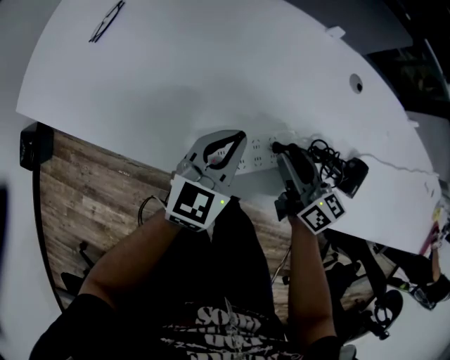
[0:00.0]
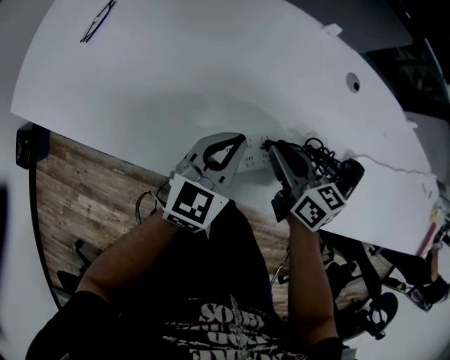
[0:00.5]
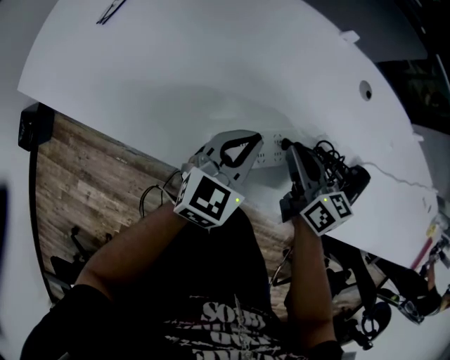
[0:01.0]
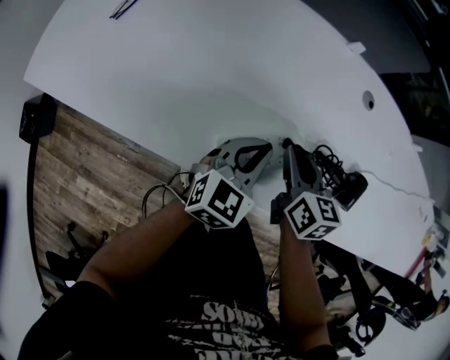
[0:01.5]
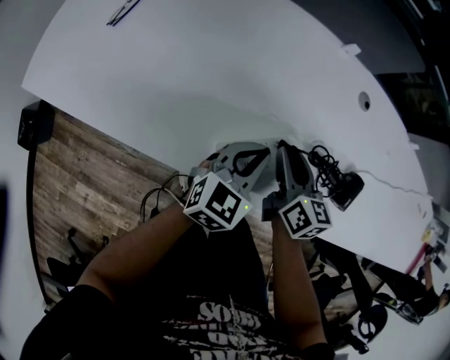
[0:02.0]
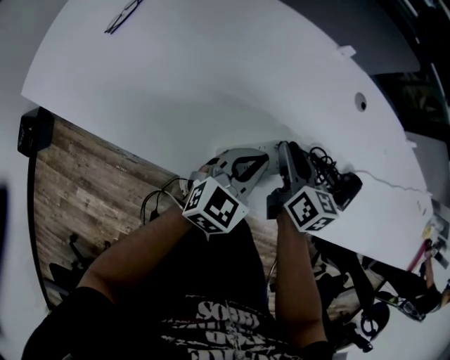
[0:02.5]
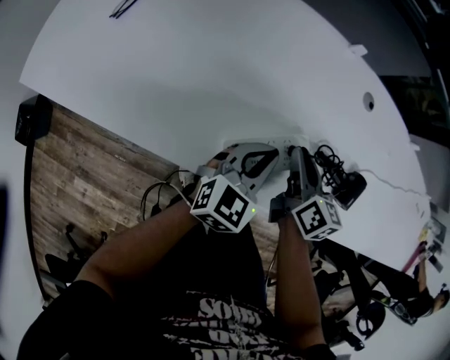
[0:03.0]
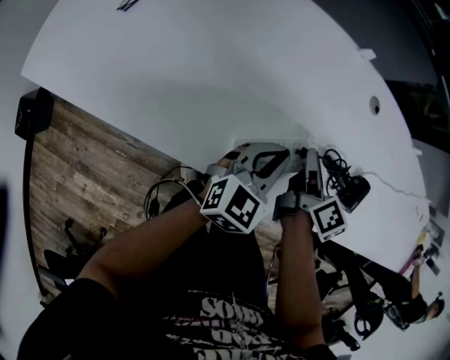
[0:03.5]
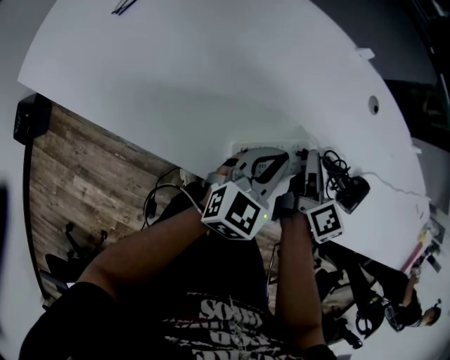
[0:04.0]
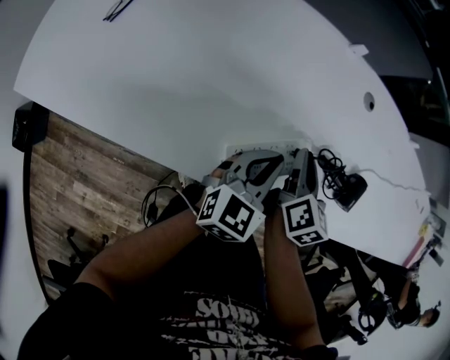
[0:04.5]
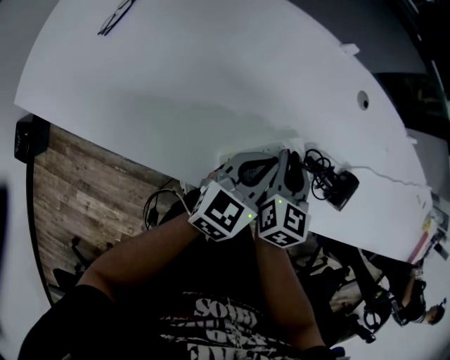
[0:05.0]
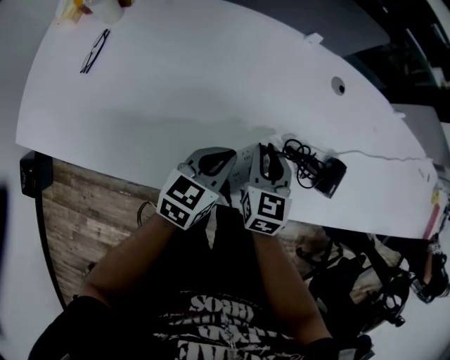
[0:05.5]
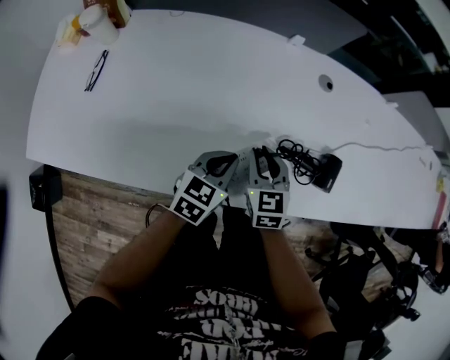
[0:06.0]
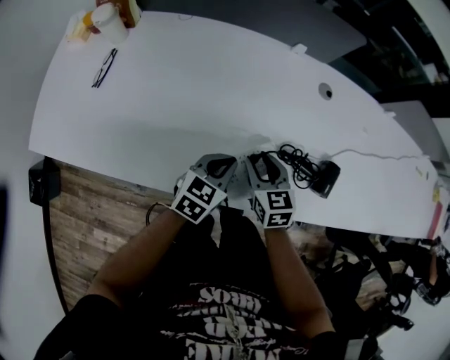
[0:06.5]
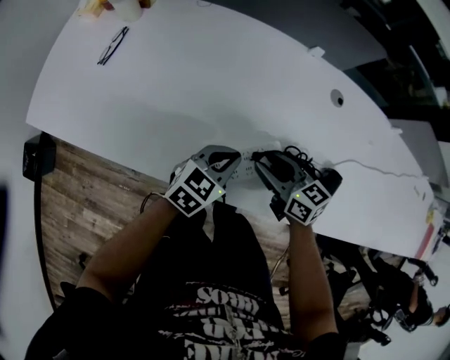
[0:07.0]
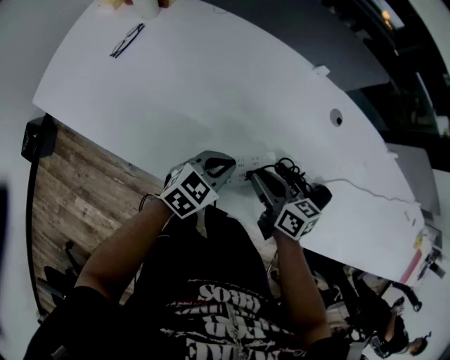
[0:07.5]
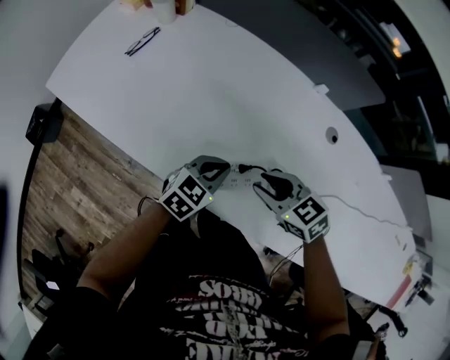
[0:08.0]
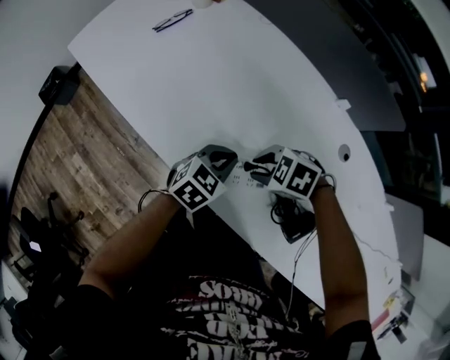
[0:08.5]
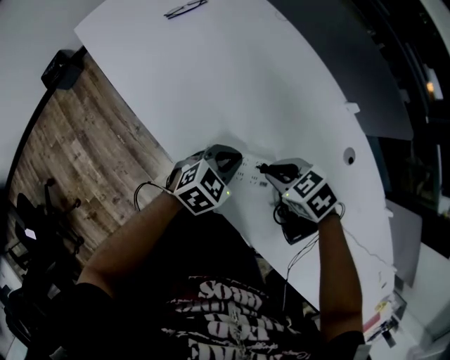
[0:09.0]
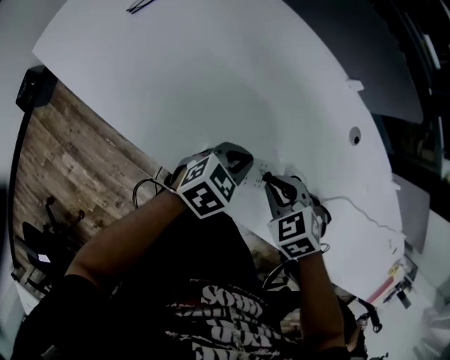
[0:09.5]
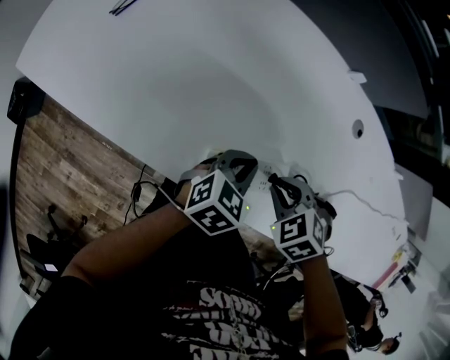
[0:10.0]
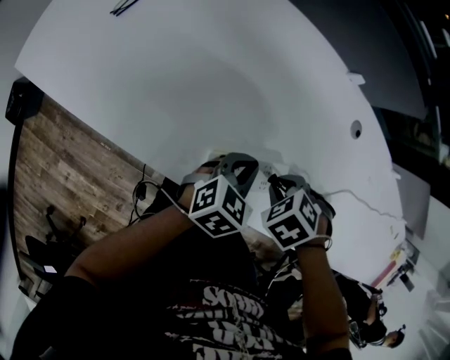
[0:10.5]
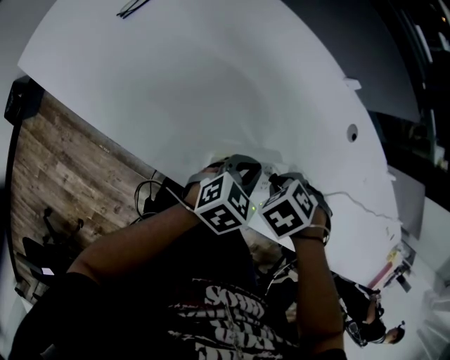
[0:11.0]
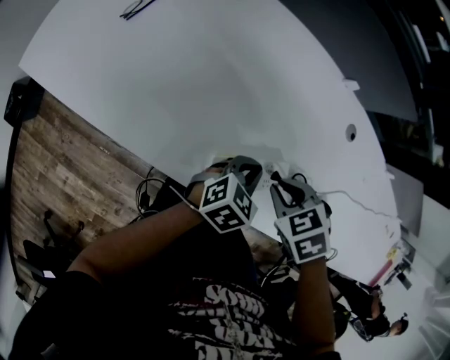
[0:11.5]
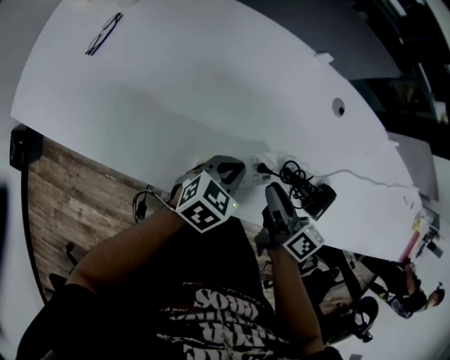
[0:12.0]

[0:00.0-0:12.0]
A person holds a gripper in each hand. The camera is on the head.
0:00.0 to 0:02.0: The left gripper changes place by about 5 cm.
0:02.0 to 0:04.0: The right gripper changes its angle by roughly 20 degrees.
0:04.0 to 0:06.0: The right gripper shifts by about 5 cm, and rotates around the line of its fingers by some 50 degrees, counterclockwise from behind.
0:06.0 to 0:08.0: The right gripper shifts about 5 cm upward, and rotates about 60 degrees.
0:08.0 to 0:10.0: The right gripper goes about 5 cm downward, and angles its fingers downward, by about 30 degrees.
0:10.0 to 0:12.0: The right gripper points its fingers some 50 degrees further upward.

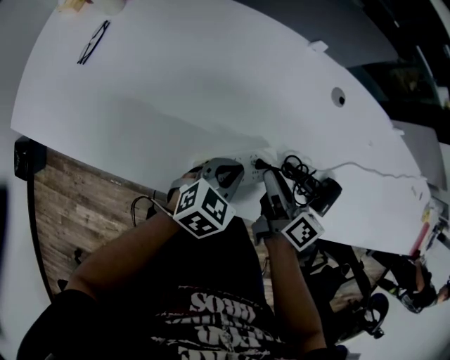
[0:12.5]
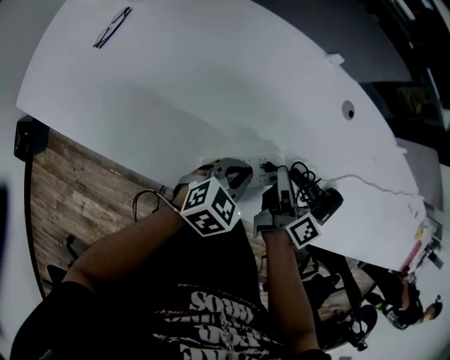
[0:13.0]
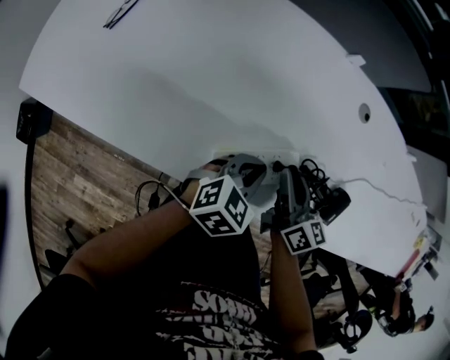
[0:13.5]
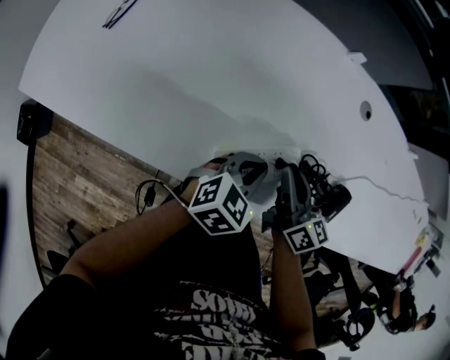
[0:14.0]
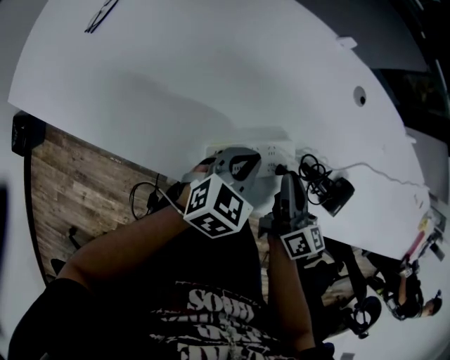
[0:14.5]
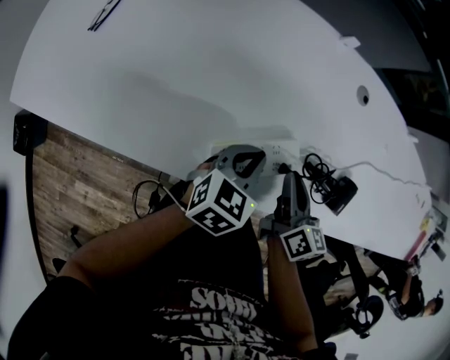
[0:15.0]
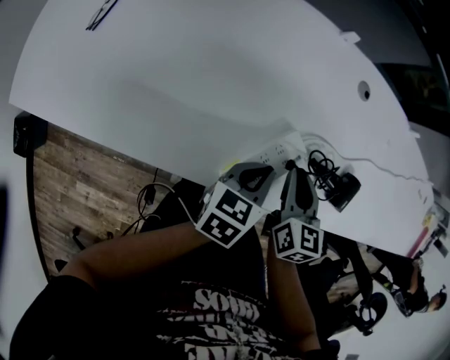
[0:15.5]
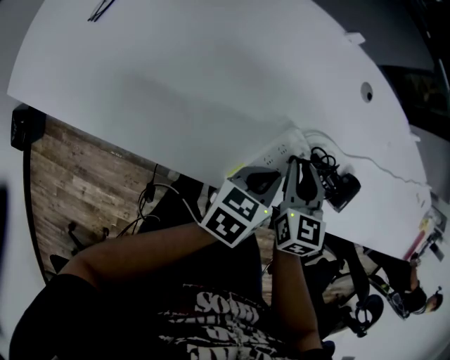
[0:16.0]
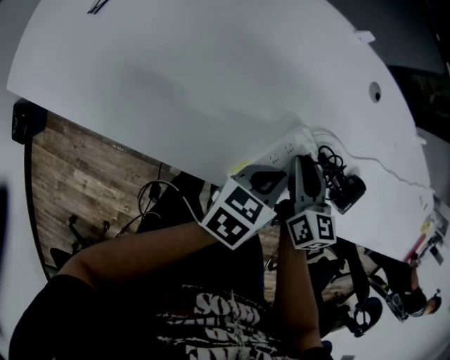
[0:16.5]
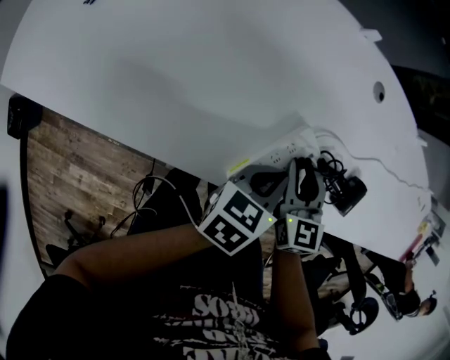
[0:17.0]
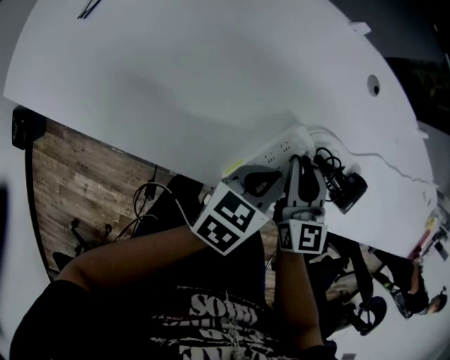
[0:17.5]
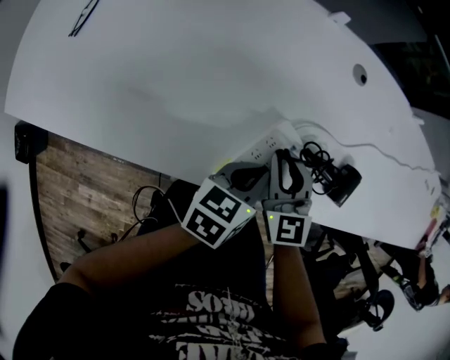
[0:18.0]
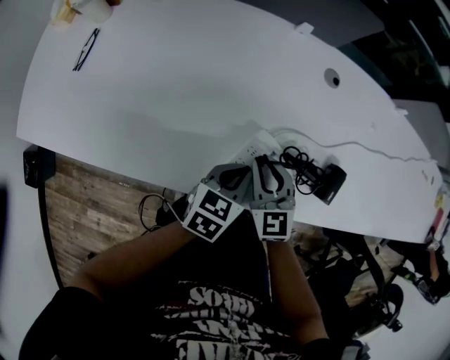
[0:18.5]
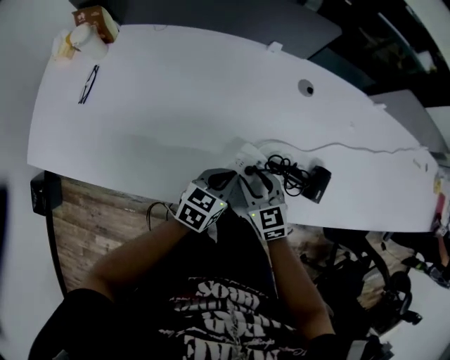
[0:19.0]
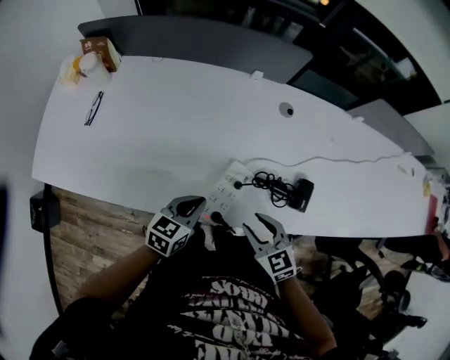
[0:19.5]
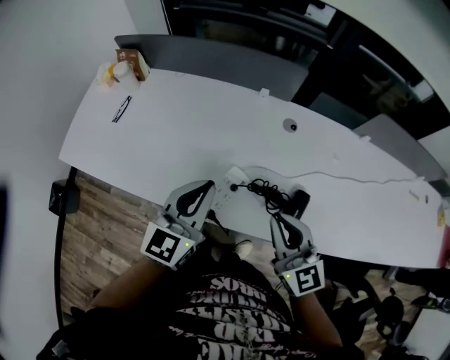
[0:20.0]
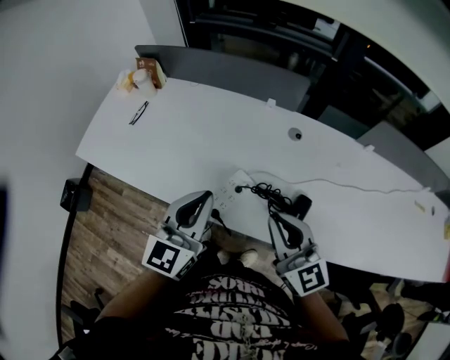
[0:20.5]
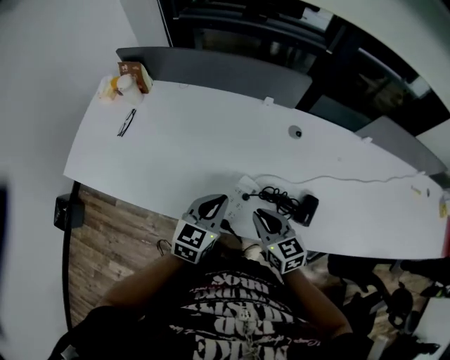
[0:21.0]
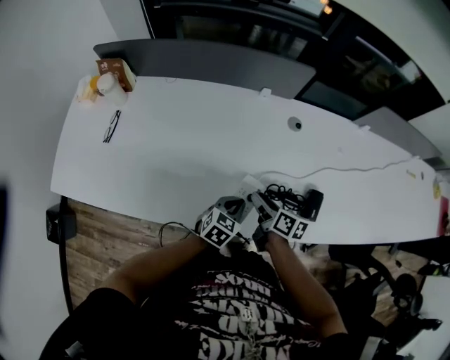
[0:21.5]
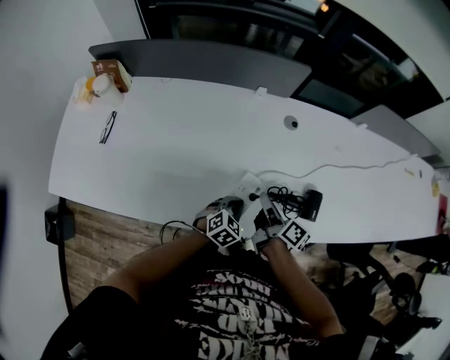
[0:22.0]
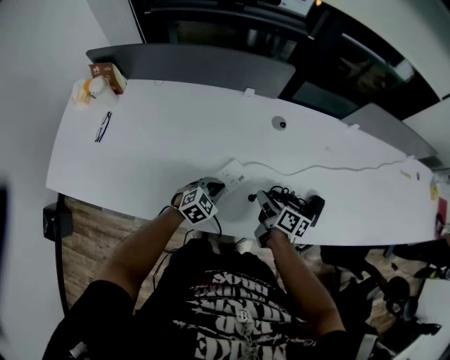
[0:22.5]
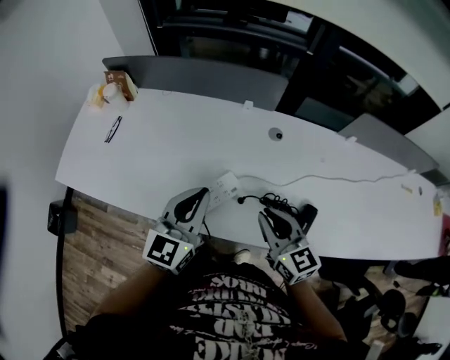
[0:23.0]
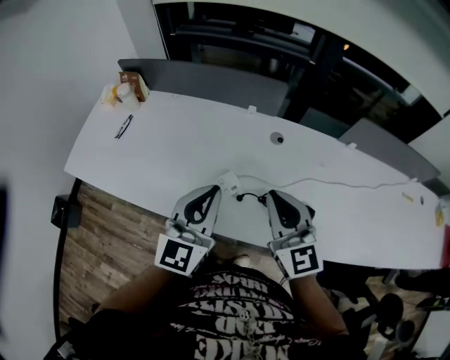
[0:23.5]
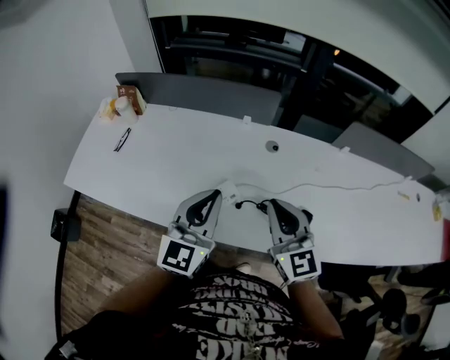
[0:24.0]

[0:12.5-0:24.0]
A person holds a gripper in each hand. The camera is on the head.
0:14.5 to 0:16.5: The right gripper changes its angle by roughly 20 degrees. The left gripper heads to the right, covering some 5 cm, and rotates roughly 30 degrees.
0:16.5 to 0:18.5: The right gripper swivels about 30 degrees.
0:18.5 to 0:20.0: The left gripper moves upward, some 25 cm, and turns by approximately 40 degrees, while the right gripper goes roughly 25 cm upward and to the right, turns by some 20 degrees, and opens, then closes again.
0:20.0 to 0:22.0: Both grippers move downward, roughly 25 cm. The right gripper rolls clockwise, seen from behind, by some 70 degrees, and opens, then closes again. Meanwhile the left gripper angles its fingers downward, by some 40 degrees.
0:22.0 to 0:24.0: The grippers both shift upward by some 30 cm. The right gripper rotates around the line of its fingers by roughly 80 degrees, counterclockwise from behind. Meanwhile the left gripper tilts its fingers about 50 degrees upward.

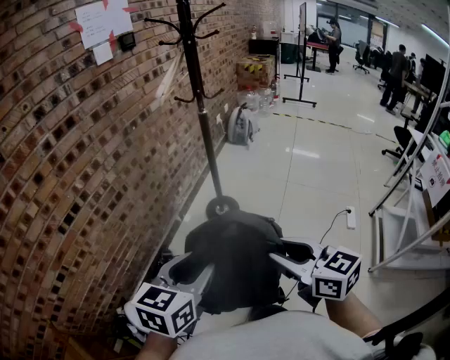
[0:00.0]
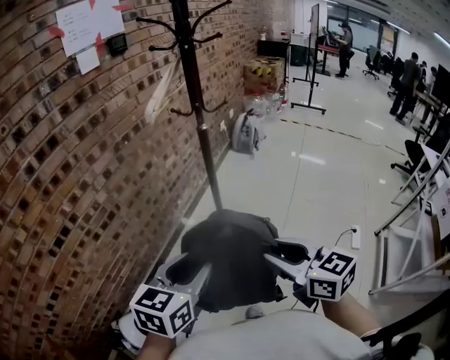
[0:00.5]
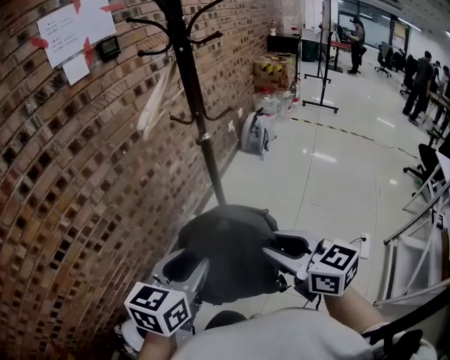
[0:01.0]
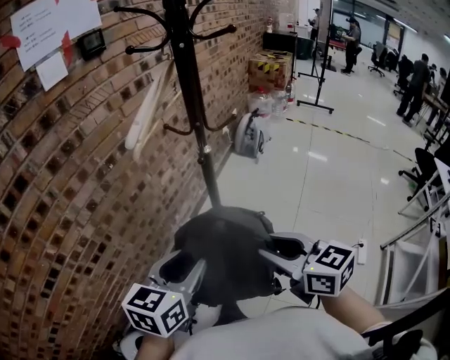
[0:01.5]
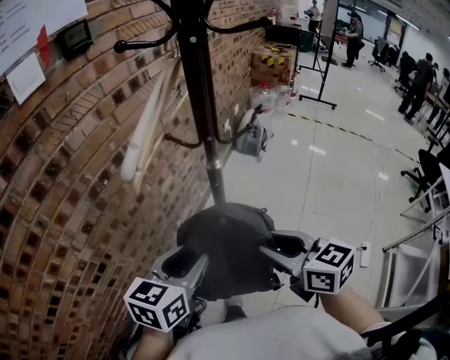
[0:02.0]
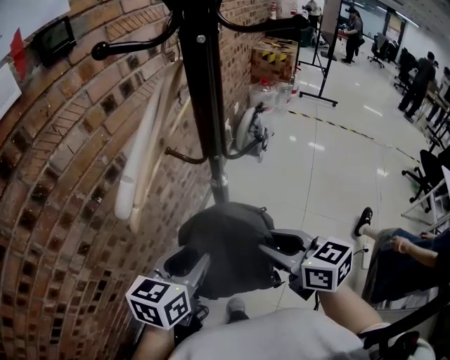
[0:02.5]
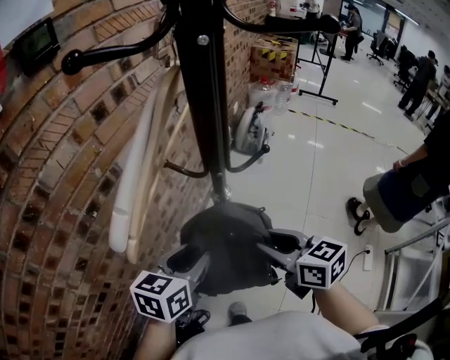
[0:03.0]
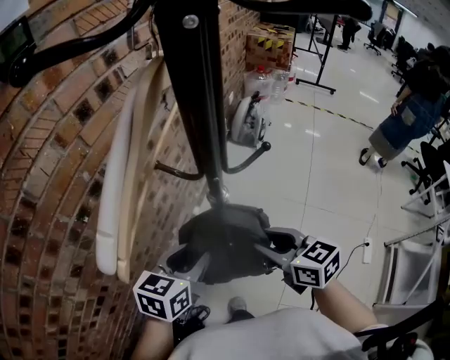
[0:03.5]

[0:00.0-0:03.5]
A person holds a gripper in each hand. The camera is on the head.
0:00.0 to 0:02.0: Both grippers are carried forward, approximately 50 cm.
0:02.0 to 0:03.5: The grippers both shift forward and downward by some 15 cm.
